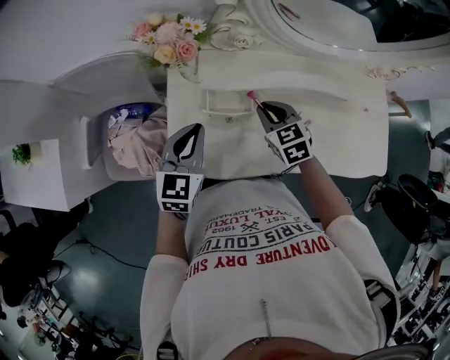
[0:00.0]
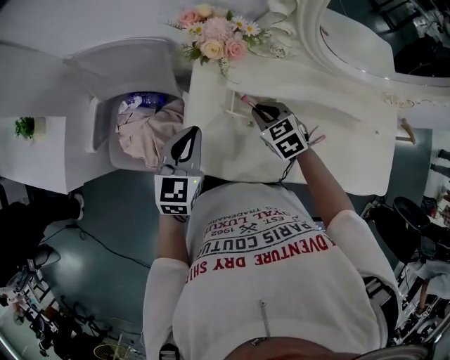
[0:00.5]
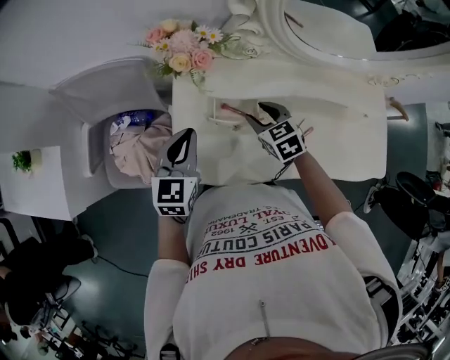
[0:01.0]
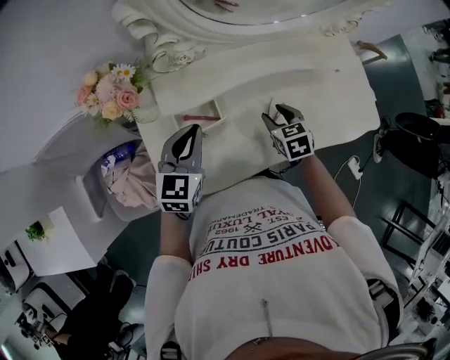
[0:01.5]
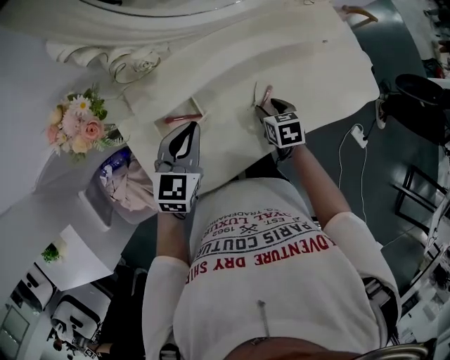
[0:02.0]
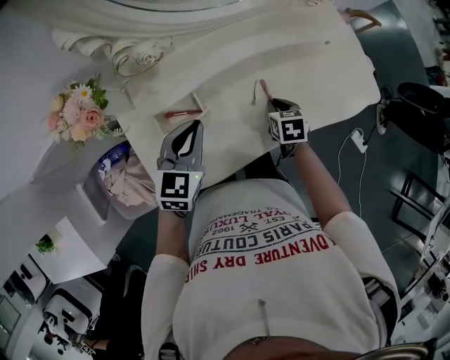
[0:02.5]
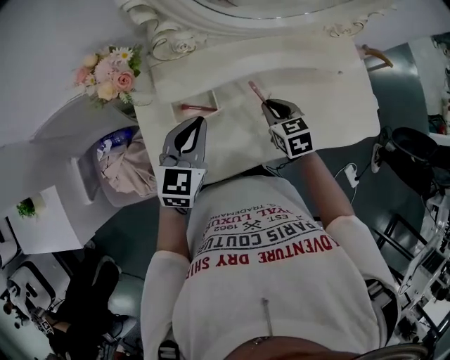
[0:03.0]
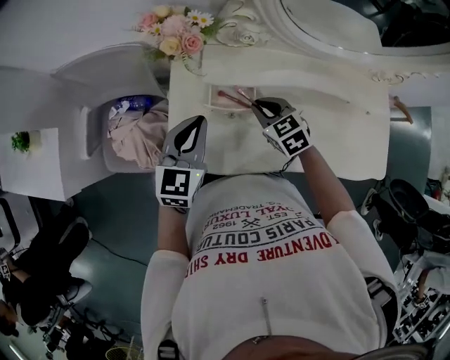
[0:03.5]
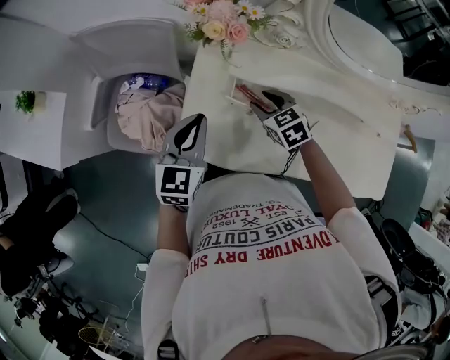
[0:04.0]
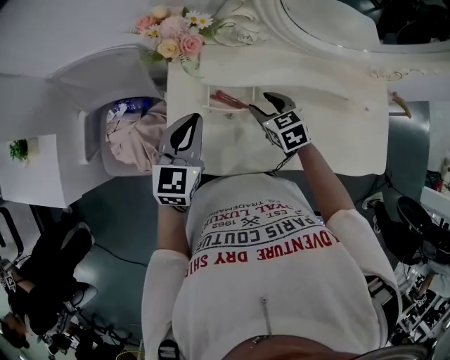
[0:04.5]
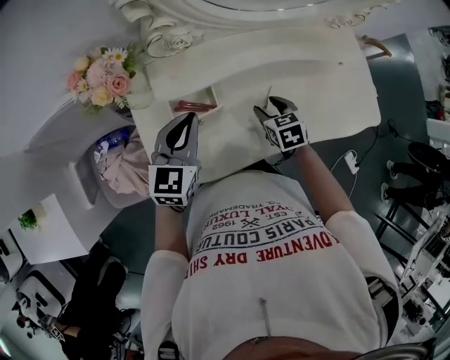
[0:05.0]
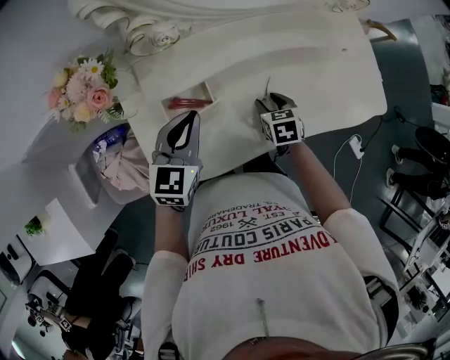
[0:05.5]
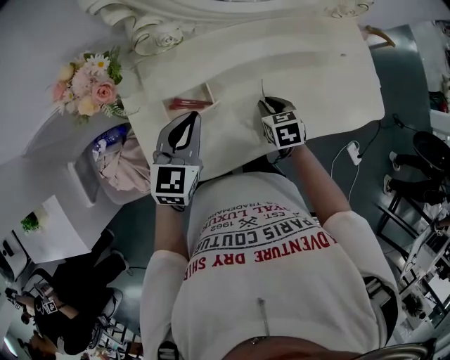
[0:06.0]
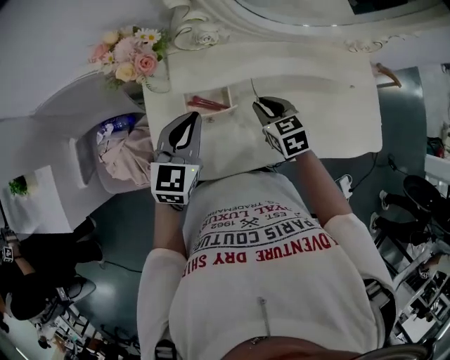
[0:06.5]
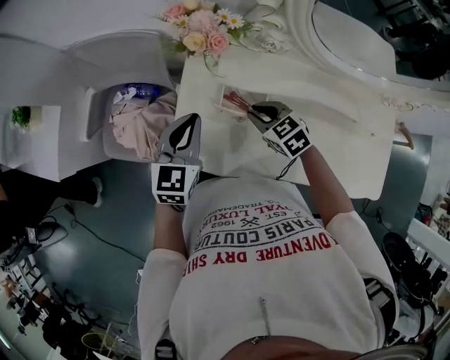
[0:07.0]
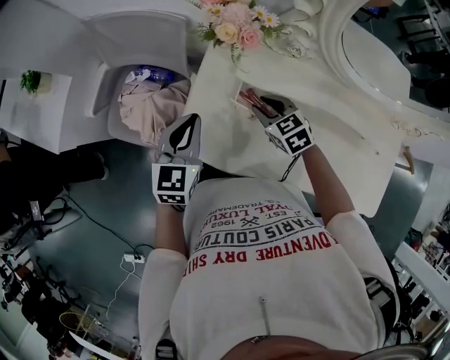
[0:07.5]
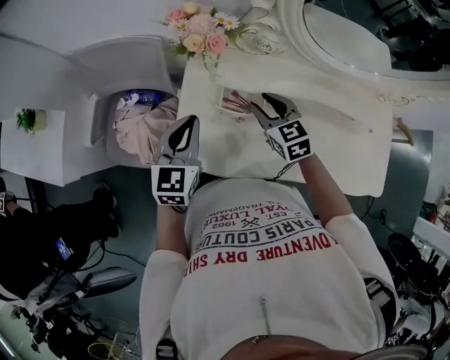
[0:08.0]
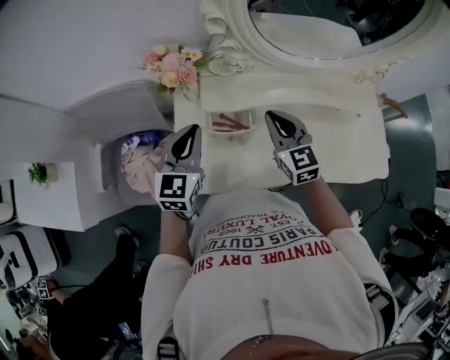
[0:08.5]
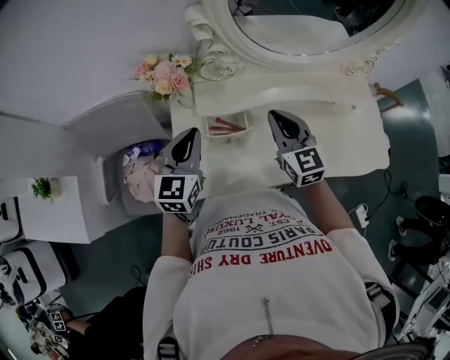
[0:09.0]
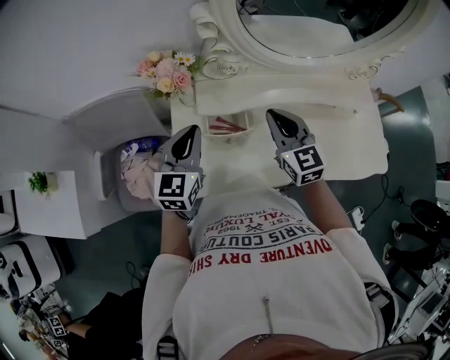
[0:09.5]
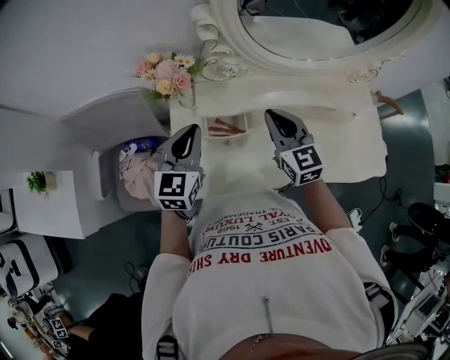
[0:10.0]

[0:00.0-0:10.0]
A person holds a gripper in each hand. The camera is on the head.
0:00.0 to 0:02.0: The left gripper ends up some 15 cm from where it was, and swivels approximately 30 degrees. The right gripper changes place by approximately 20 cm, swivels roughly 50 degrees, and opens.
0:02.0 to 0:04.0: The right gripper changes place by approximately 25 cm, rolls counterclockwise, seen from behind, by approximately 50 degrees, and closes, then reopens, while the left gripper ends up about 20 cm from where it was, and changes its angle by approximately 40 degrees.
0:04.0 to 0:06.0: The right gripper moves some 25 cm, and rotates some 50 degrees. The left gripper moves about 15 cm, and rotates approximately 30 degrees.
0:06.0 to 0:08.0: The right gripper ends up some 25 cm from where it was, and swivels about 40 degrees. The left gripper changes place by approximately 15 cm, and changes its angle by some 30 degrees.
0:08.0 to 0:10.0: The right gripper heads upward and to the right, covering approximately 15 cm, turns by about 30 degrees, and closes. The left gripper goes approximately 5 cm to the right.

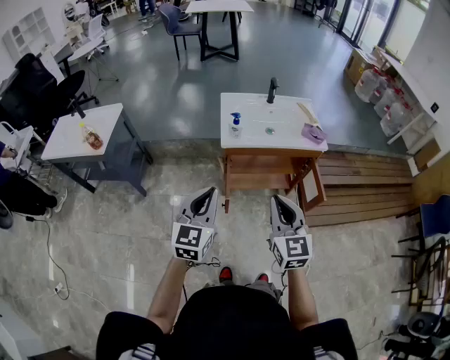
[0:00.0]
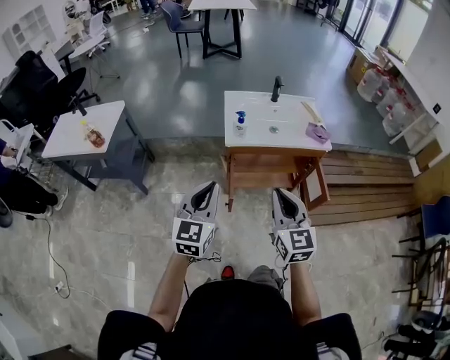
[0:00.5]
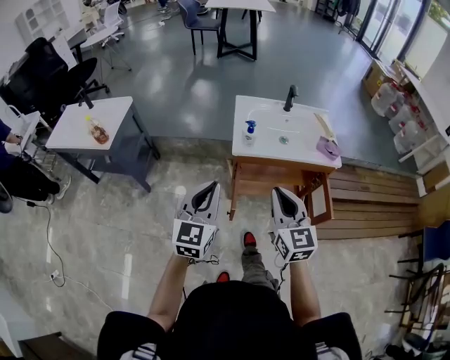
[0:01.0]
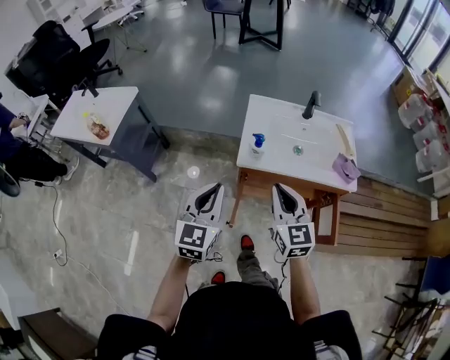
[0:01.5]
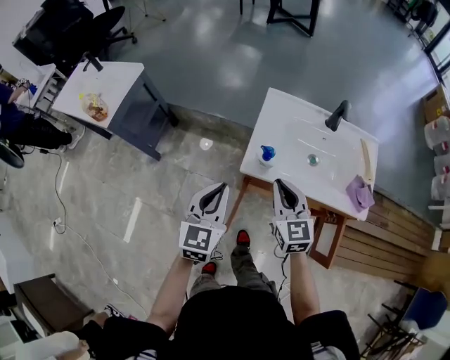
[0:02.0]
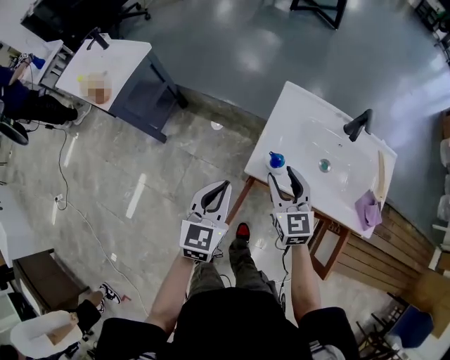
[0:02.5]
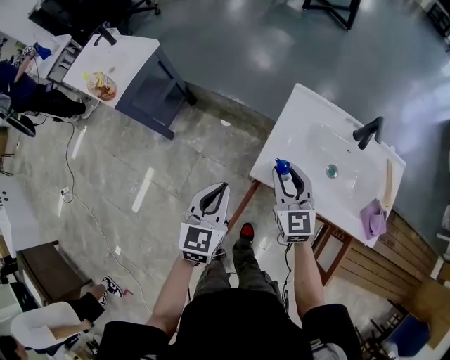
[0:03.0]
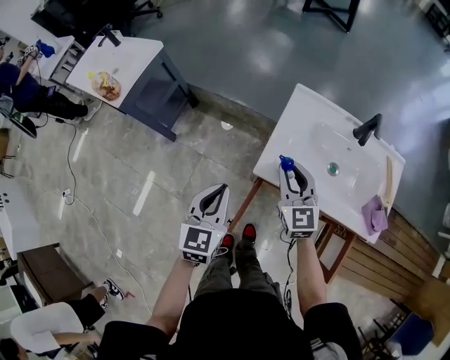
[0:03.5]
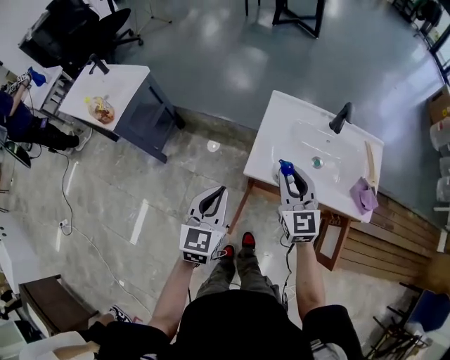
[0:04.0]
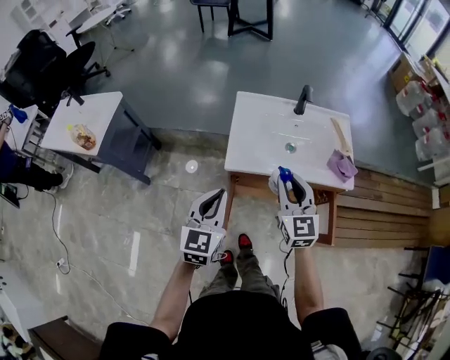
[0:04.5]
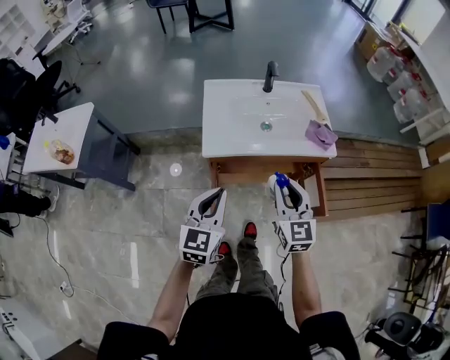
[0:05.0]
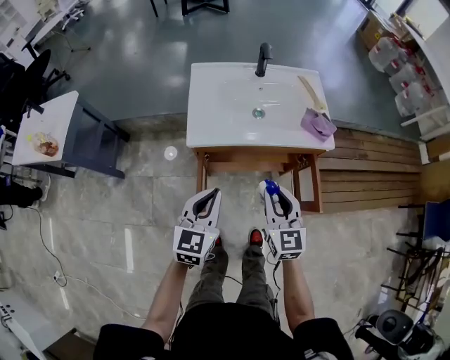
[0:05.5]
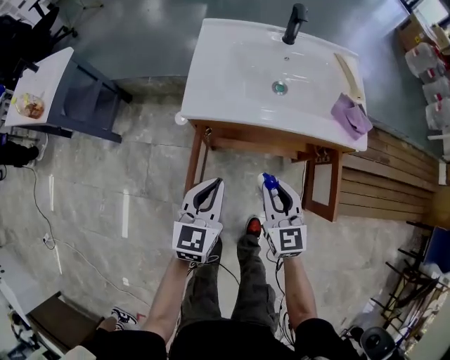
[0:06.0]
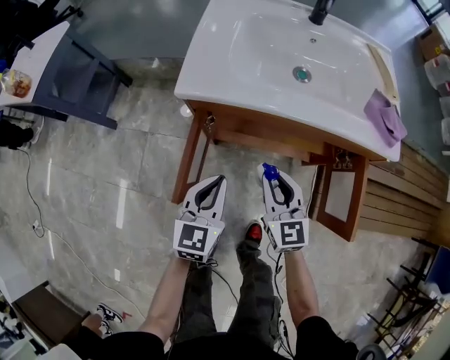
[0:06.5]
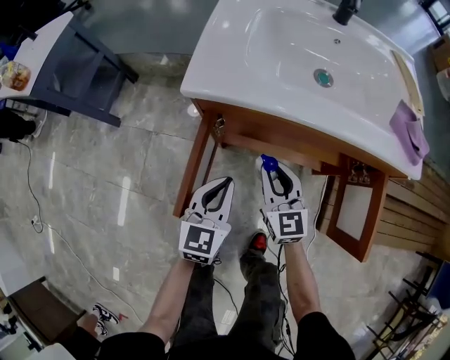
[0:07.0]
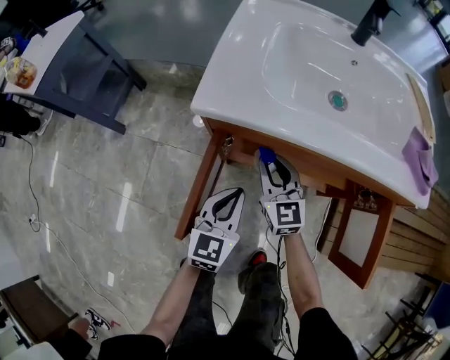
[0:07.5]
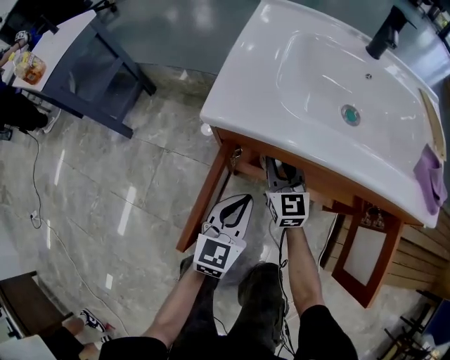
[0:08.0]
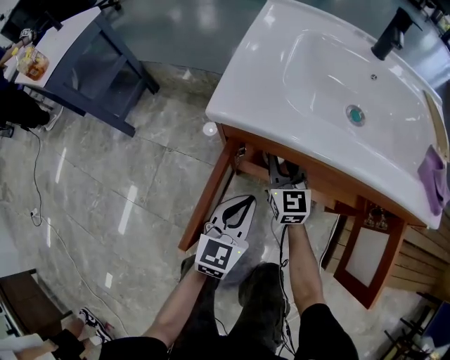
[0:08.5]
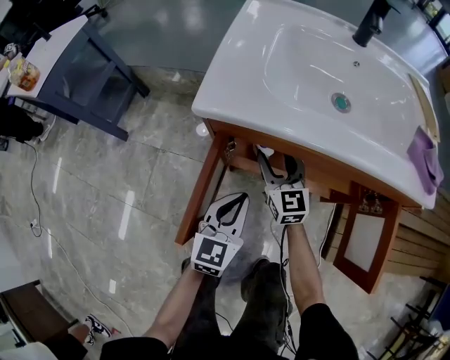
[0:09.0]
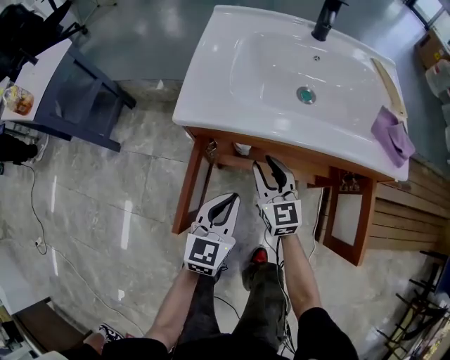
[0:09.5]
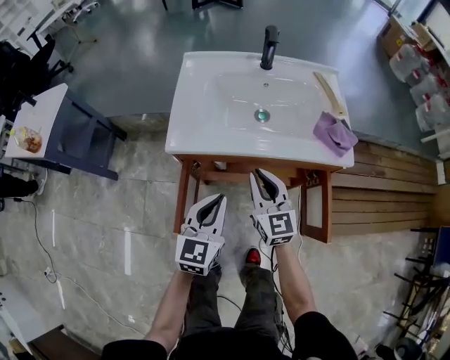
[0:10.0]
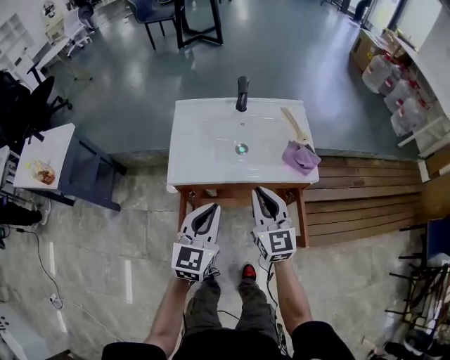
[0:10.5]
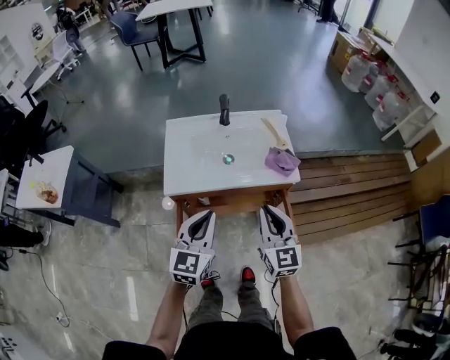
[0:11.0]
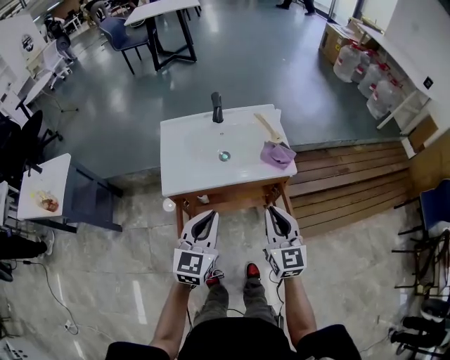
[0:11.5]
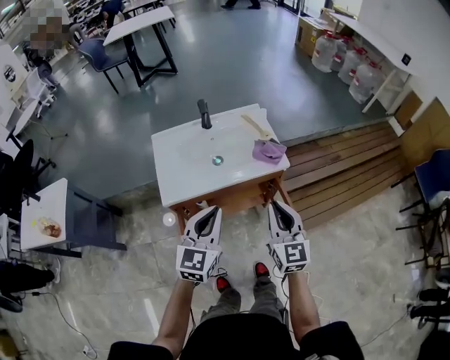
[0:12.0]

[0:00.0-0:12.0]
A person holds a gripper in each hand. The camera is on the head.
0:00.0 to 0:02.0: The grippers both shift forward by about 30 cm. The right gripper changes its angle by roughly 20 degrees. The left gripper changes its angle by approximately 20 degrees.
0:02.0 to 0:04.0: The right gripper opens, then closes again.
0:04.0 to 0:06.0: The right gripper is displaced downward, backward and to the right by roughly 30 cm, while the left gripper is displaced downward, to the right and backward by about 25 cm.
0:06.0 to 0:08.0: The right gripper is displaced downward, forward and to the left by roughly 30 cm. Meanwhile the left gripper travels downward by approximately 20 cm.
0:08.0 to 0:10.0: The left gripper shifts some 20 cm upward. The right gripper heads upward, backward and to the right, covering roughly 25 cm, and opens, then closes again.
0:10.0 to 0:12.0: The right gripper travels upward, to the right and backward by some 30 cm, and turns by approximately 30 degrees; the left gripper shifts roughly 25 cm upward, and turns by approximately 20 degrees.

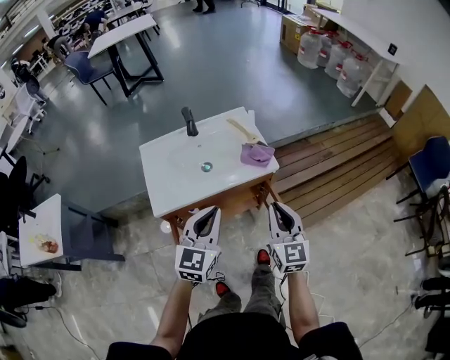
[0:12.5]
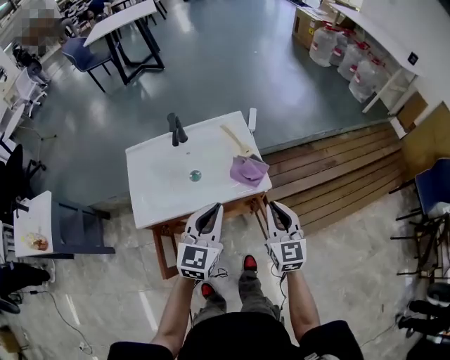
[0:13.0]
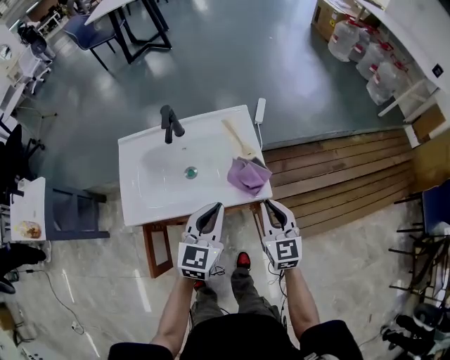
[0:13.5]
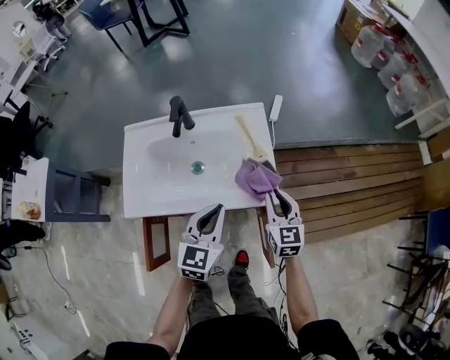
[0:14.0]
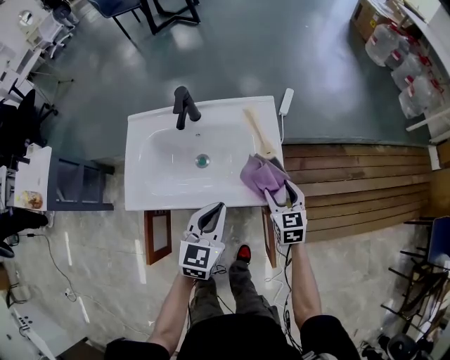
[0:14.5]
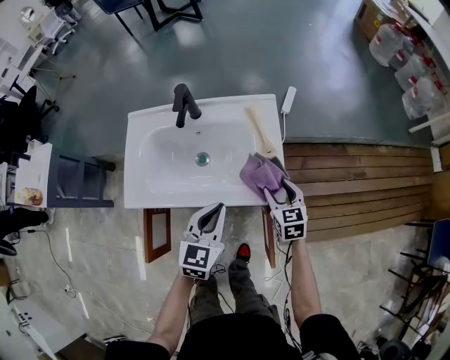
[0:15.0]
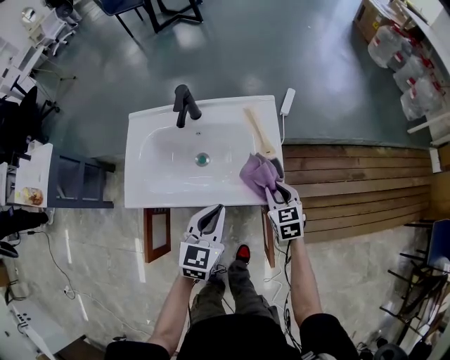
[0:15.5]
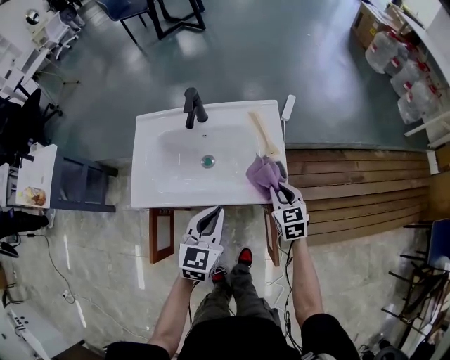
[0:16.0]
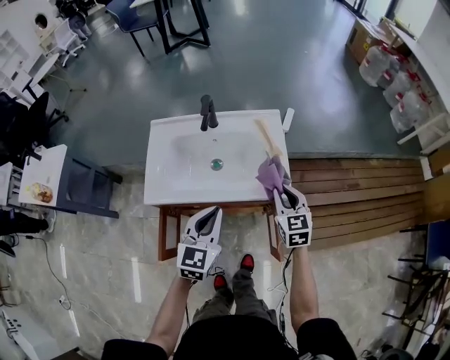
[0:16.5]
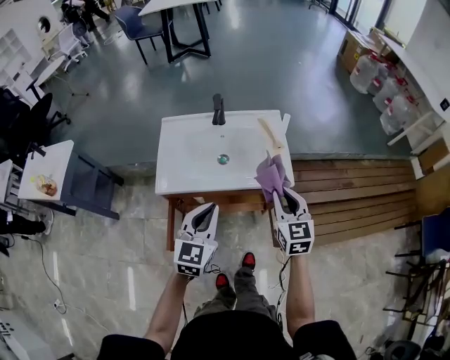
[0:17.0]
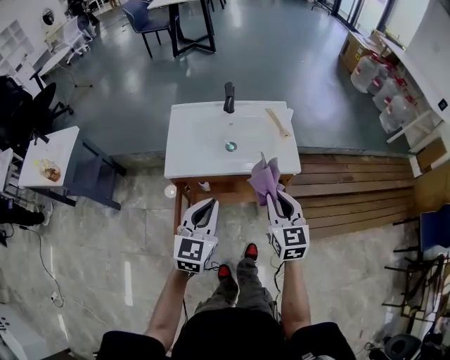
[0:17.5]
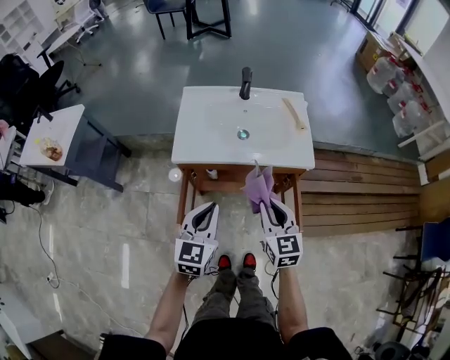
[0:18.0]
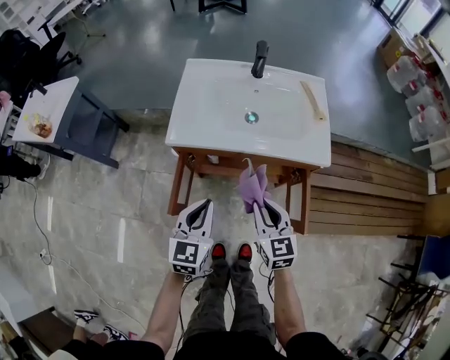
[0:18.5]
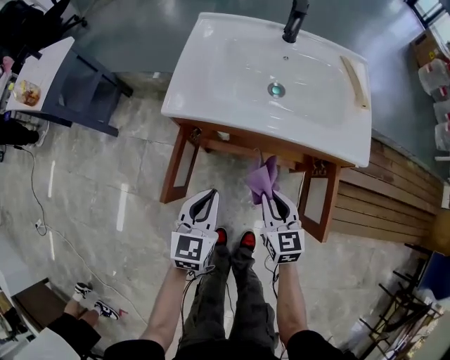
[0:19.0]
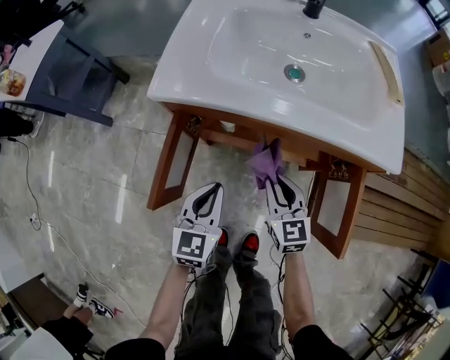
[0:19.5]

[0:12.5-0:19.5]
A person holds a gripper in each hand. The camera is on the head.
0:12.5 to 0:14.5: The right gripper shifts about 35 cm forward and downward, changes its angle by about 30 degrees, and opens its fingers; the left gripper heads forward, downward and to the right, covering about 25 cm, and turns by some 20 degrees.
0:14.5 to 0:16.0: The right gripper closes its fingers.
0:16.0 to 0:17.5: The left gripper moves backward, to the left and upward, roughly 25 cm; the right gripper heads backward, upward and to the left, covering approximately 30 cm.
0:17.5 to 0:19.5: Both grippers travel together downward, approximately 35 cm. The right gripper swivels some 20 degrees. The left gripper turns by some 20 degrees.
